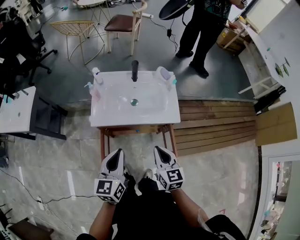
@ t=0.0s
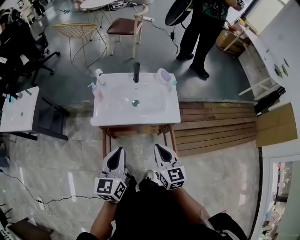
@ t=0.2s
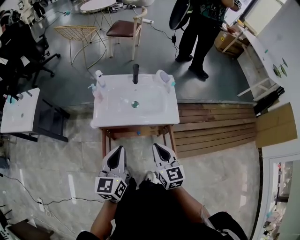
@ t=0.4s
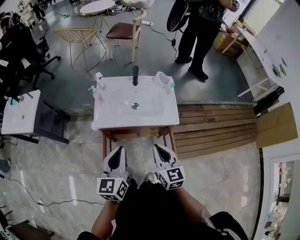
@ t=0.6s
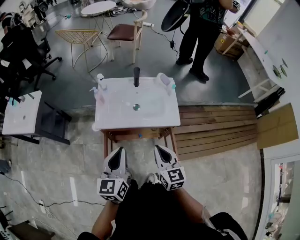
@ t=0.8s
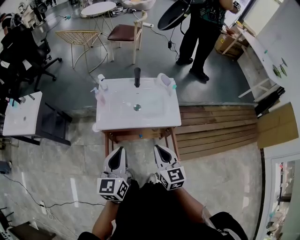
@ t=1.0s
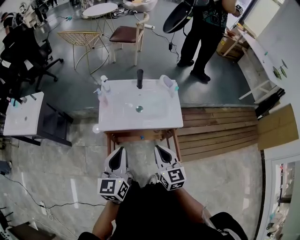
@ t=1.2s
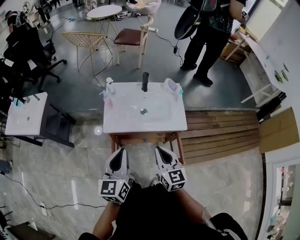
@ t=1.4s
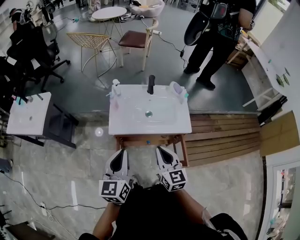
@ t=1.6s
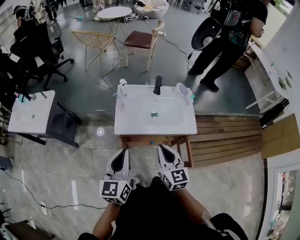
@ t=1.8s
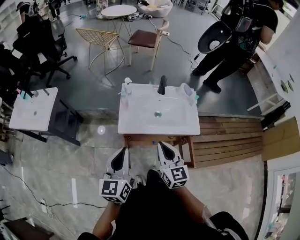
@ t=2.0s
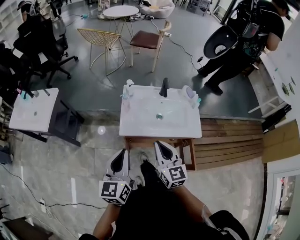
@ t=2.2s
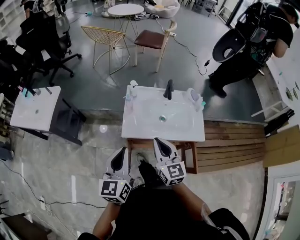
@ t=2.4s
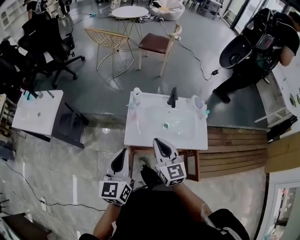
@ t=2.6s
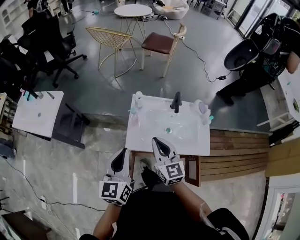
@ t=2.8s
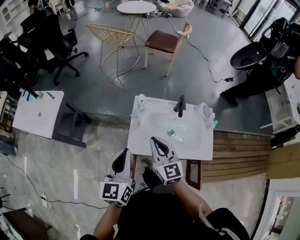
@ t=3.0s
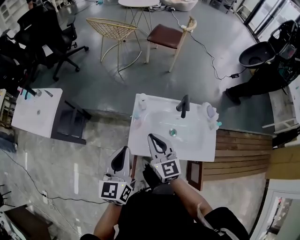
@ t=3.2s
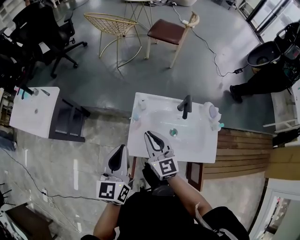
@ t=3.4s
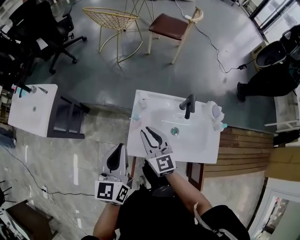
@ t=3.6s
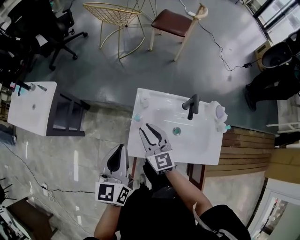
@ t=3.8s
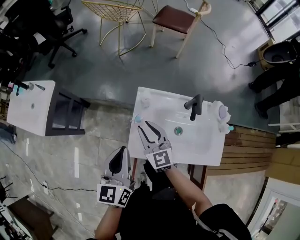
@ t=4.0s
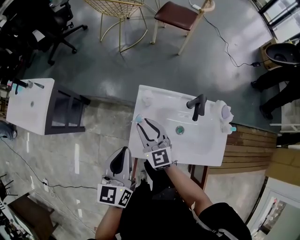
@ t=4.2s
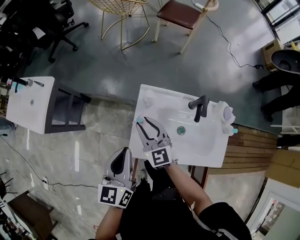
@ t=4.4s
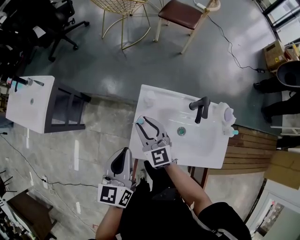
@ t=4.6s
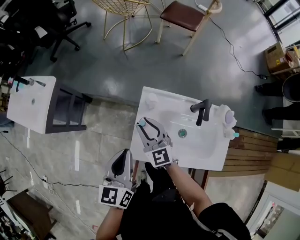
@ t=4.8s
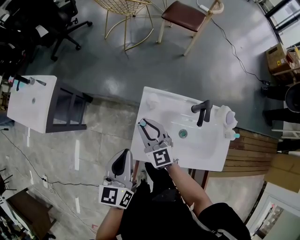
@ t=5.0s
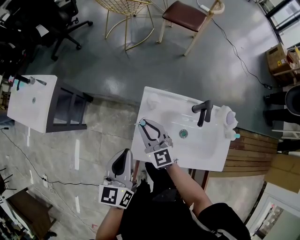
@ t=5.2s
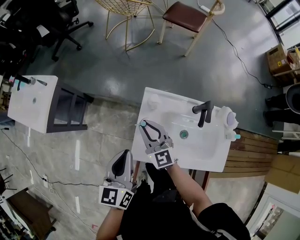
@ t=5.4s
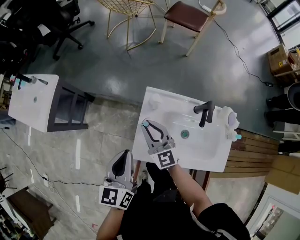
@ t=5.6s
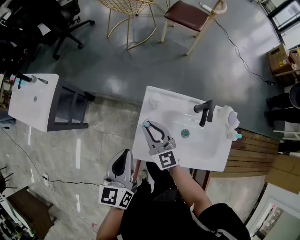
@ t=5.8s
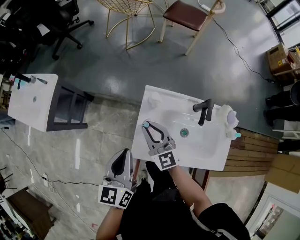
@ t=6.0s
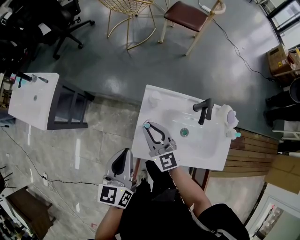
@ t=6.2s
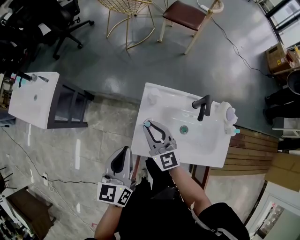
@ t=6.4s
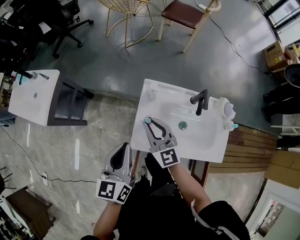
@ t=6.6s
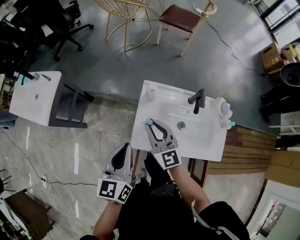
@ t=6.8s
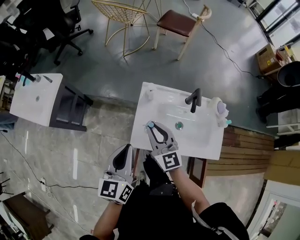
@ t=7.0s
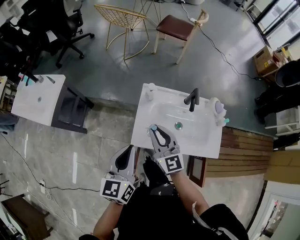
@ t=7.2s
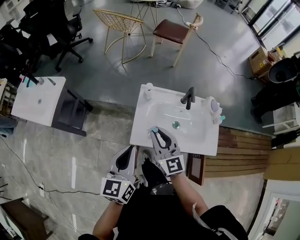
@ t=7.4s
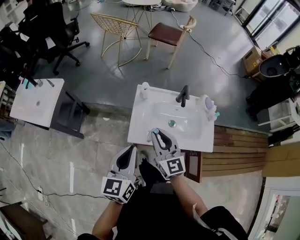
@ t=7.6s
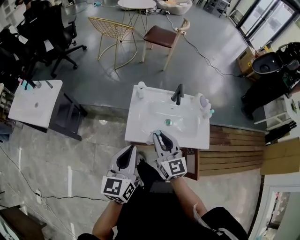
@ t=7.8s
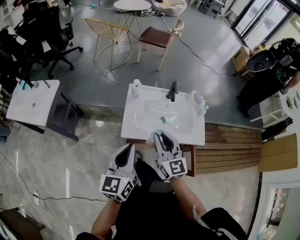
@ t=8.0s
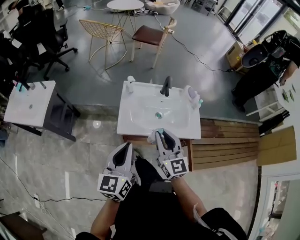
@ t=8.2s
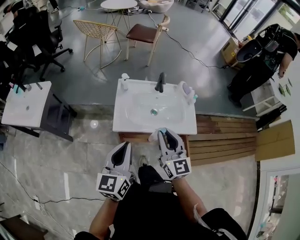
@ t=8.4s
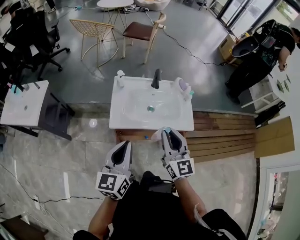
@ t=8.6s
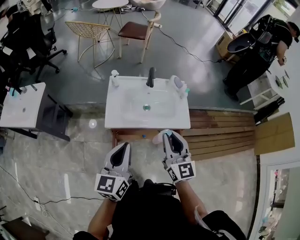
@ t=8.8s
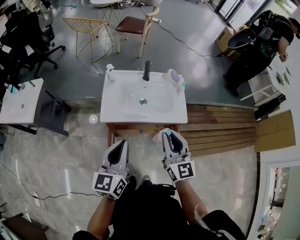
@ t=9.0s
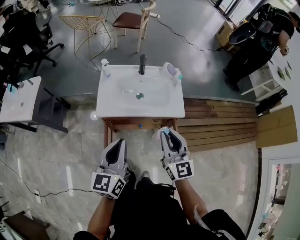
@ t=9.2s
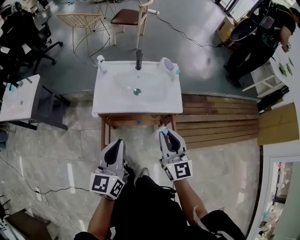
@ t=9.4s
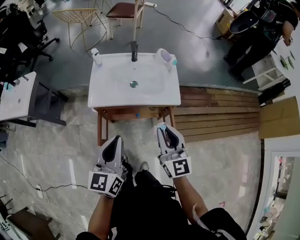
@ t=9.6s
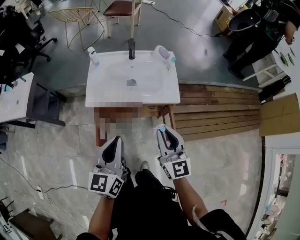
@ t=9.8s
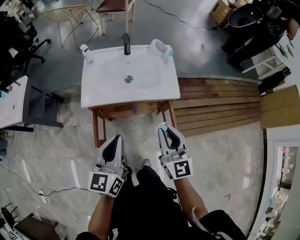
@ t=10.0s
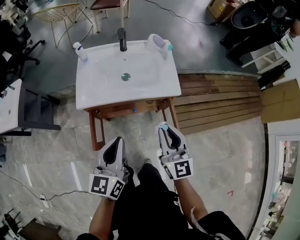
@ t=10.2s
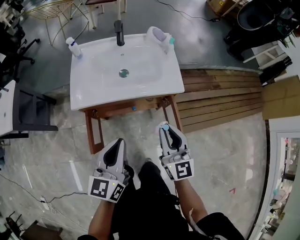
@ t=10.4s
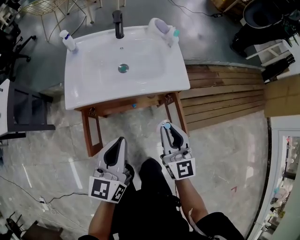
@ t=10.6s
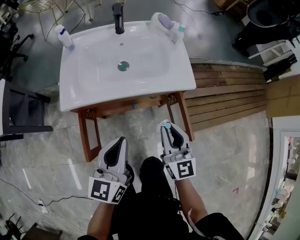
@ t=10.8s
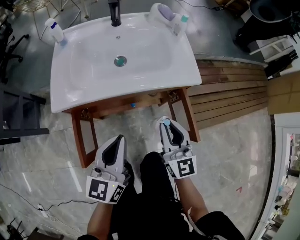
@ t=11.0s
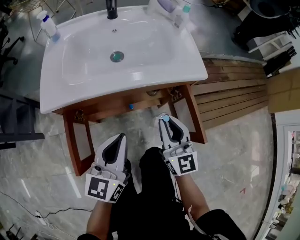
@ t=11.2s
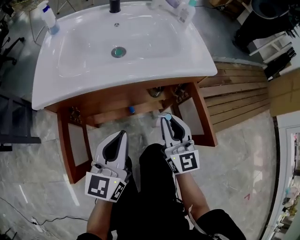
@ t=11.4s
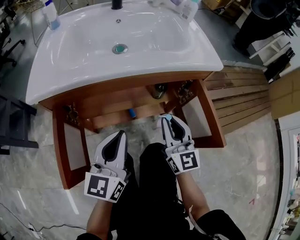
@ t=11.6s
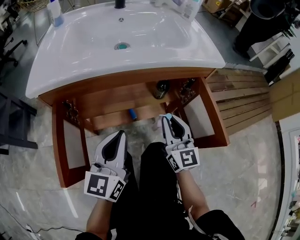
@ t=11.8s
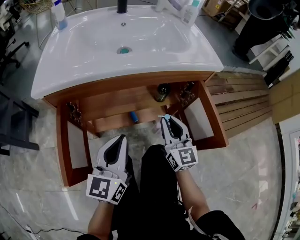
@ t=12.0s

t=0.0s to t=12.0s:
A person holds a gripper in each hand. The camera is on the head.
t=0.0s to t=1.6s: The grippers both shift to the left and upward by approximately 10 cm.
t=1.6s to t=3.0s: The grippers both shift forward and to the left by roughly 20 cm.
t=3.0s to t=4.4s: Both grippers travel together forward and downward, roughly 15 cm. The right gripper opens.
t=4.4s to t=6.0s: There are only small adjustments of the grippers.
t=6.0s to t=7.6s: Both grippers move backward and upward, about 20 cm.
t=7.6s to t=9.0s: The left gripper travels backward and to the right by some 15 cm; the right gripper travels to the right and backward by about 25 cm.
t=9.0s to t=10.4s: The two grippers go about 20 cm downward and to the right.
t=10.4s to t=12.0s: The two grippers go some 35 cm downward.

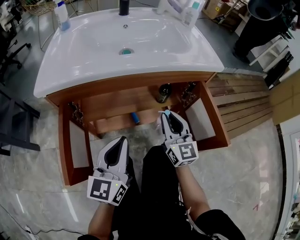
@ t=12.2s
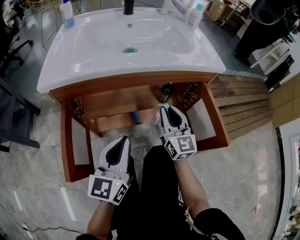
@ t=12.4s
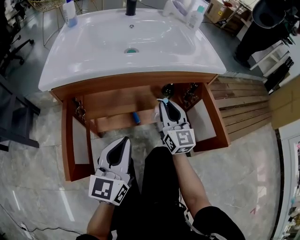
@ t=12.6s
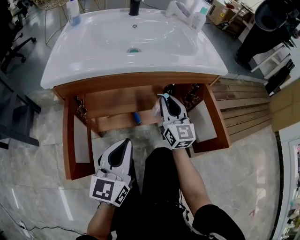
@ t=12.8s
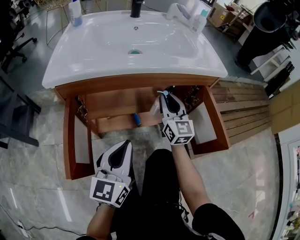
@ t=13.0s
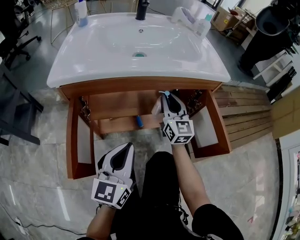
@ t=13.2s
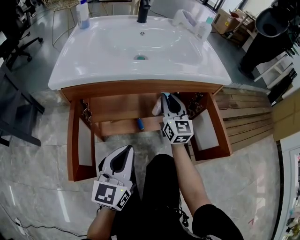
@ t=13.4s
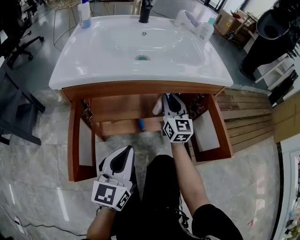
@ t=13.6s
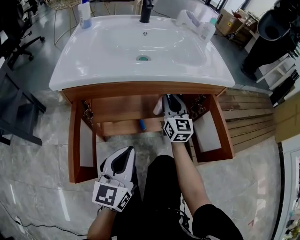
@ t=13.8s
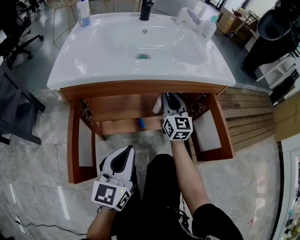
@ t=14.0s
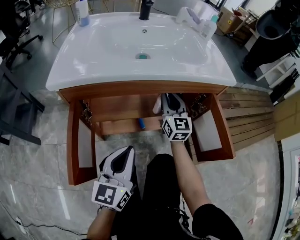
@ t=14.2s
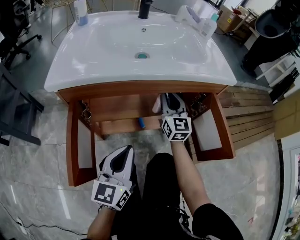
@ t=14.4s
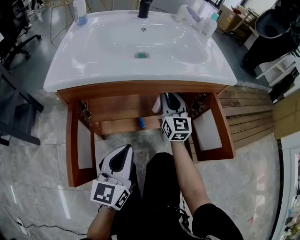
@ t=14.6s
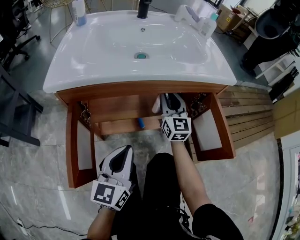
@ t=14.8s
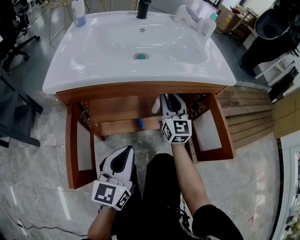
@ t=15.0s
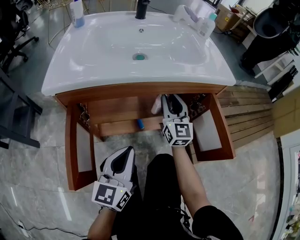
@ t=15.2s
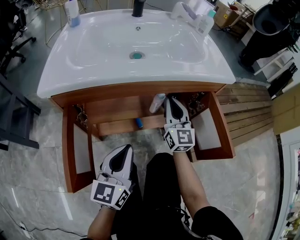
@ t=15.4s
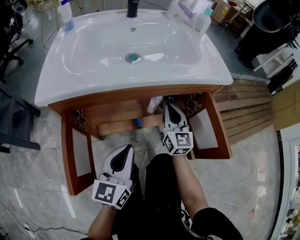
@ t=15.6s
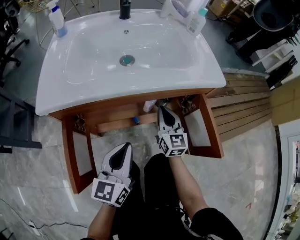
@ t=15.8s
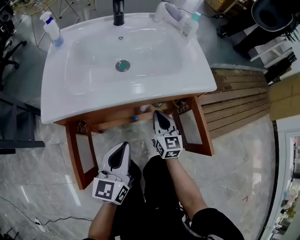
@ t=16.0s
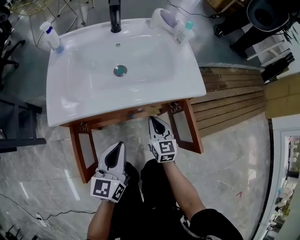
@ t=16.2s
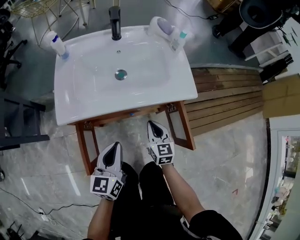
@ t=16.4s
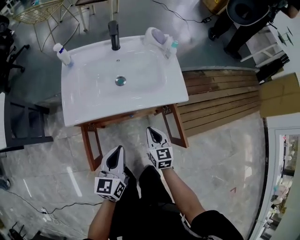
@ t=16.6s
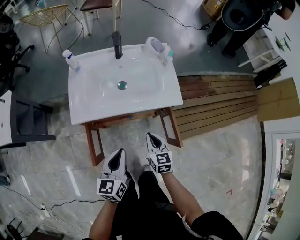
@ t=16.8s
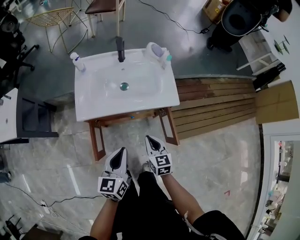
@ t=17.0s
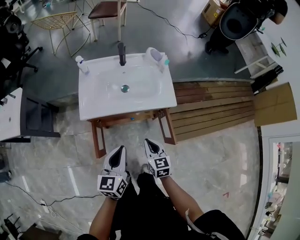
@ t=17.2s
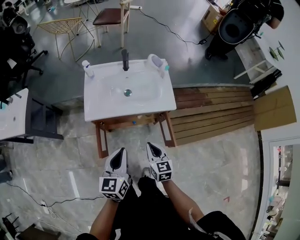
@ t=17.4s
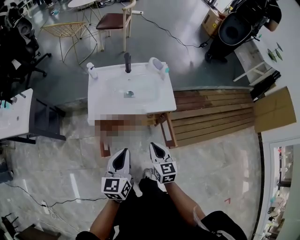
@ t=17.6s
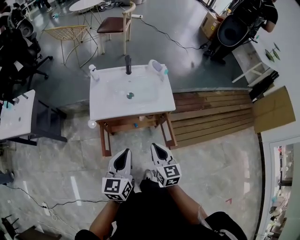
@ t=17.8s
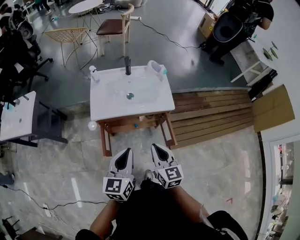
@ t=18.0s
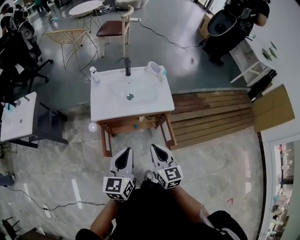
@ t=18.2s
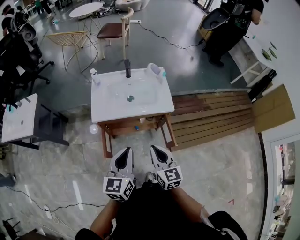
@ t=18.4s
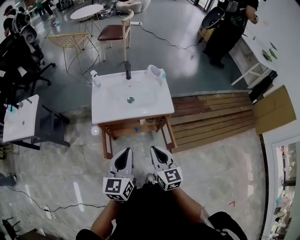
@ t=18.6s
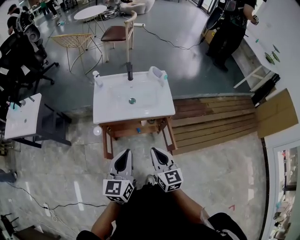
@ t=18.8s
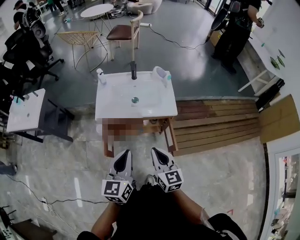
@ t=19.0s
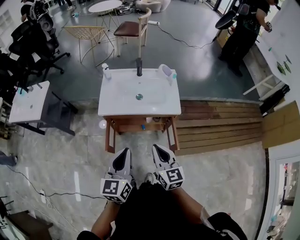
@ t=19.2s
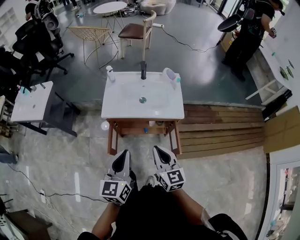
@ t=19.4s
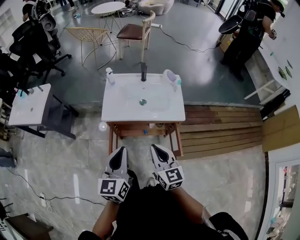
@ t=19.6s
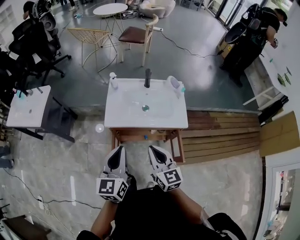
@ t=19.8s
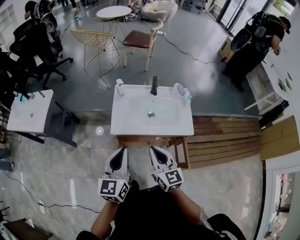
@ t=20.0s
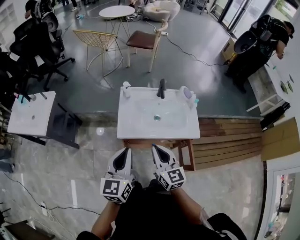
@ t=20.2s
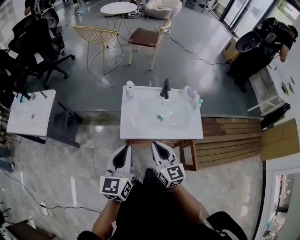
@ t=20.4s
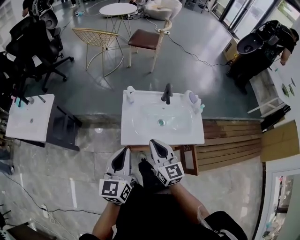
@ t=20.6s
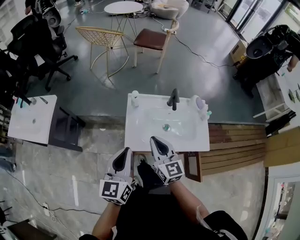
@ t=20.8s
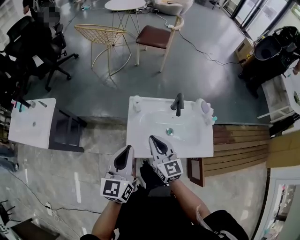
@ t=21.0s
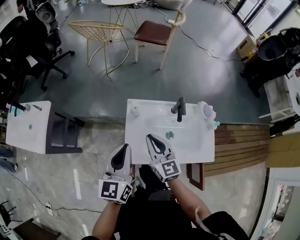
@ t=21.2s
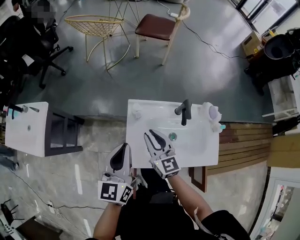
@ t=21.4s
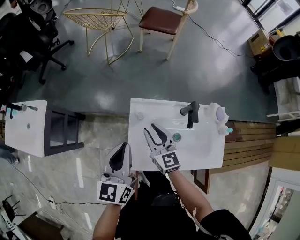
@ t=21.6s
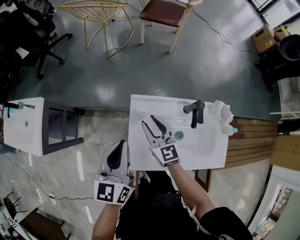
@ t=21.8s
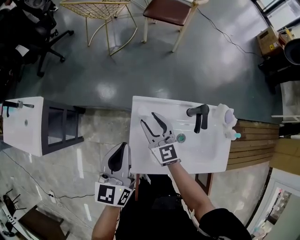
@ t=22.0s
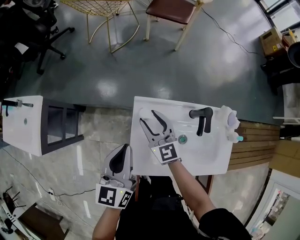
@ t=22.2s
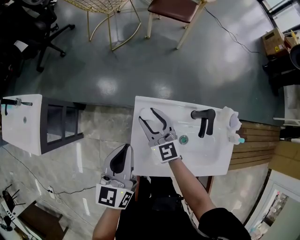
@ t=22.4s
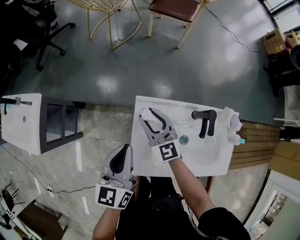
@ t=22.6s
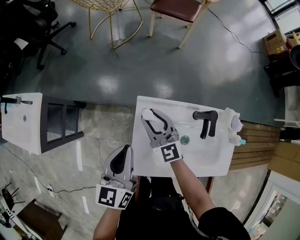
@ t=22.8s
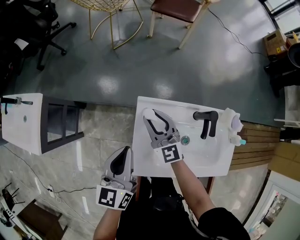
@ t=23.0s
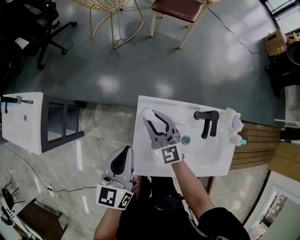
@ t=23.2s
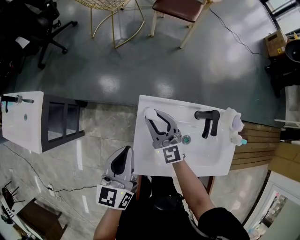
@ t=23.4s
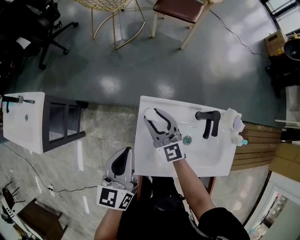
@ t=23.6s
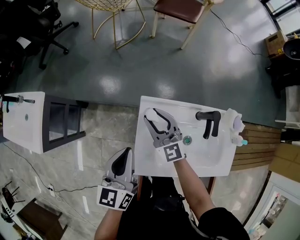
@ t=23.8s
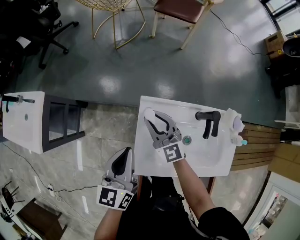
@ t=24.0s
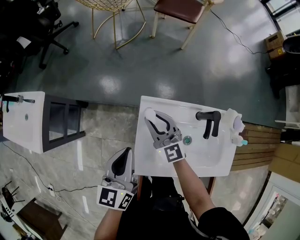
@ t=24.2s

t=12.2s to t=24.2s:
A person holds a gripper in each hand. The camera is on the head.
t=12.2s to t=13.8s: The right gripper shifts about 10 cm forward.
t=13.8s to t=15.2s: There are only small adjustments of the grippers.
t=15.2s to t=16.6s: The right gripper goes approximately 15 cm backward and upward, tilts its fingers roughly 30 degrees downward, and closes its fingers. The left gripper goes some 20 cm upward.
t=16.6s to t=18.2s: Both grippers travel together upward and backward, approximately 30 cm.
t=18.2s to t=19.8s: The right gripper shifts approximately 10 cm forward and to the left. Meanwhile the left gripper is displaced to the left and forward by roughly 10 cm.
t=19.8s to t=21.2s: The two grippers go about 30 cm forward.
t=21.2s to t=22.6s: Both grippers travel together forward and downward, approximately 20 cm. The right gripper opens its fingers.
t=22.6s to t=24.2s: The grippers stay close to where they were, moving slightly.
